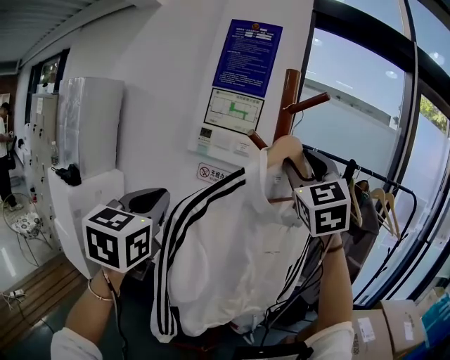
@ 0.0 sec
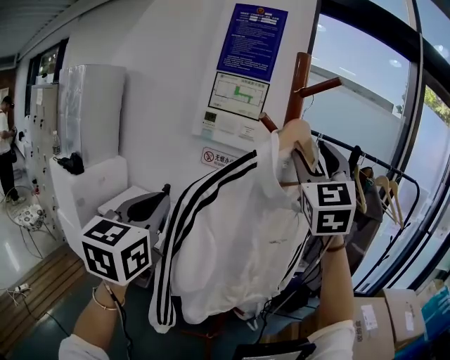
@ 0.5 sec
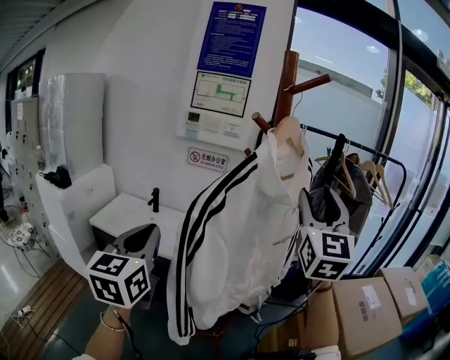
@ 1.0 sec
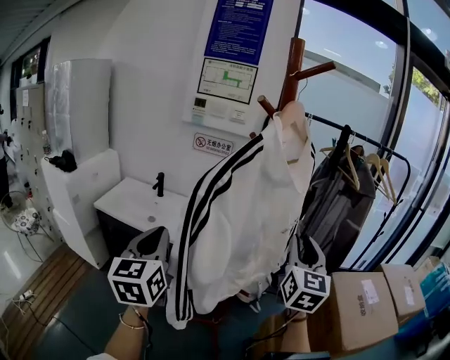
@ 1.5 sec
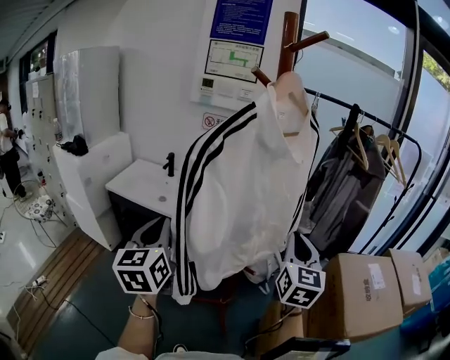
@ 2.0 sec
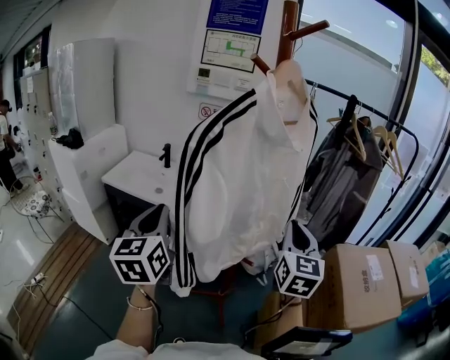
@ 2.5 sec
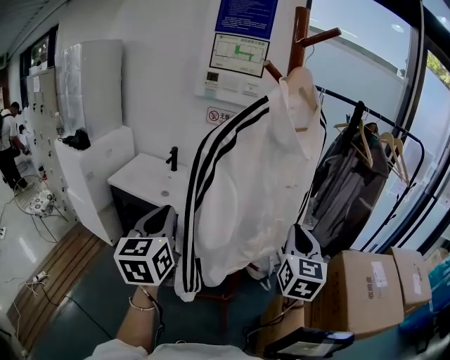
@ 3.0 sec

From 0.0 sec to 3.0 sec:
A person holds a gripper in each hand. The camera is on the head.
From 0.0 sec to 1.5 sec: The right gripper heads downward, covering some 25 cm, and turns by roughly 40 degrees. The left gripper goes roughly 15 cm downward.
From 1.5 sec to 3.0 sec: The right gripper heads downward, covering some 5 cm, and closes up.

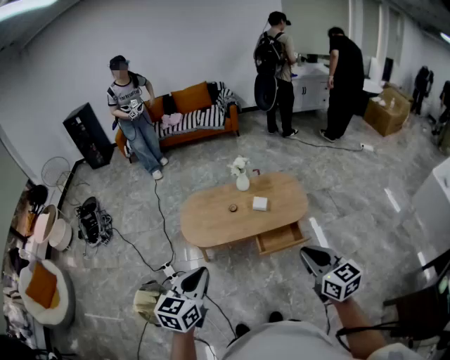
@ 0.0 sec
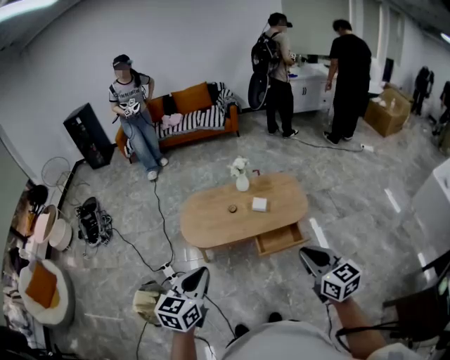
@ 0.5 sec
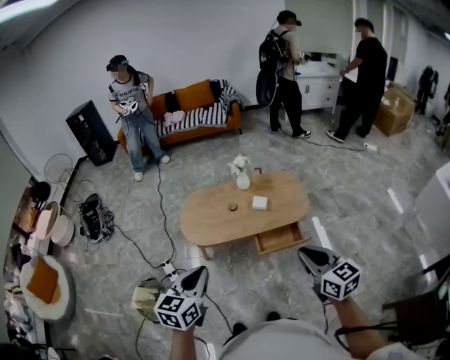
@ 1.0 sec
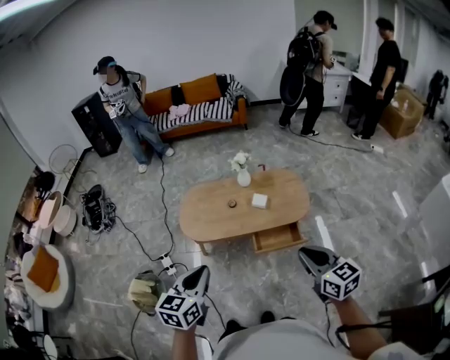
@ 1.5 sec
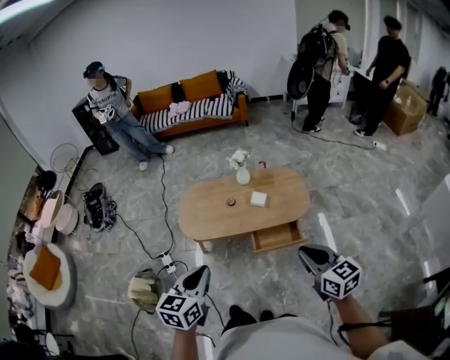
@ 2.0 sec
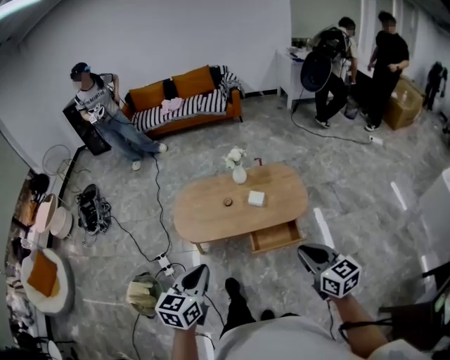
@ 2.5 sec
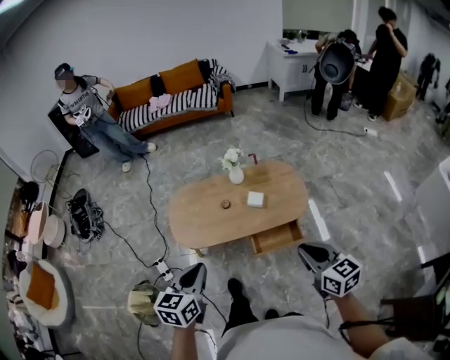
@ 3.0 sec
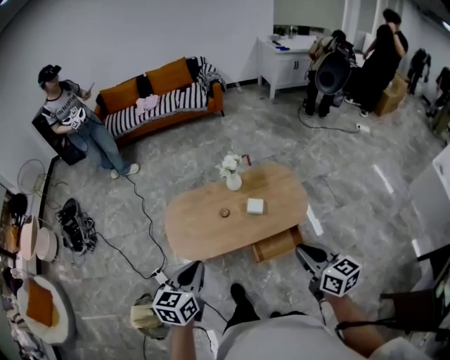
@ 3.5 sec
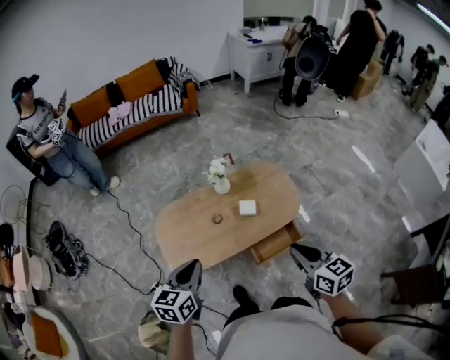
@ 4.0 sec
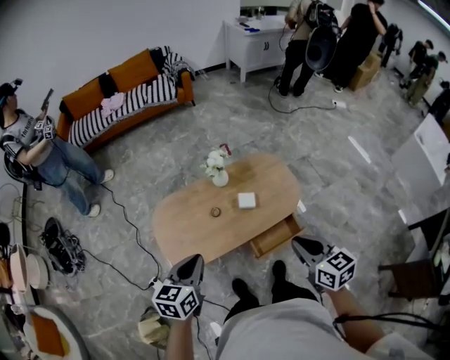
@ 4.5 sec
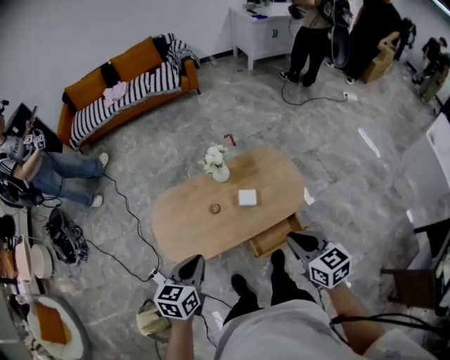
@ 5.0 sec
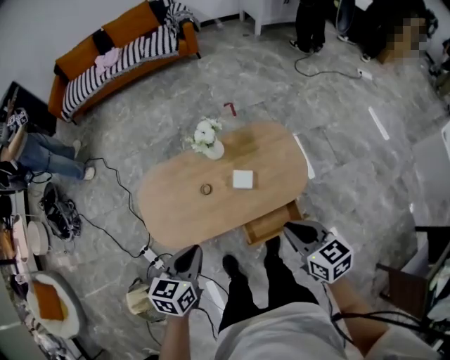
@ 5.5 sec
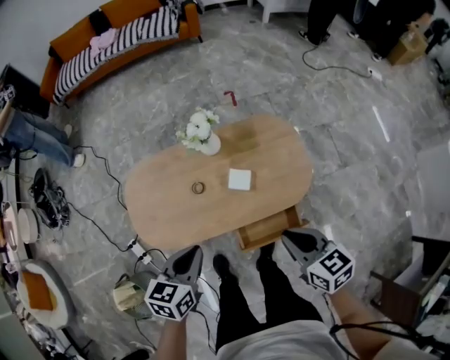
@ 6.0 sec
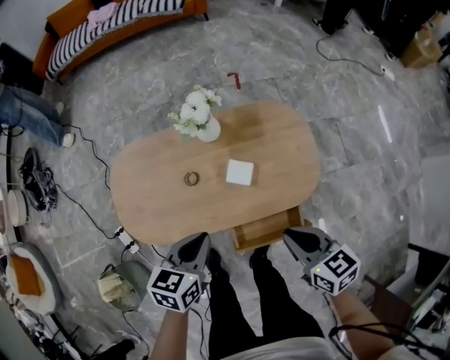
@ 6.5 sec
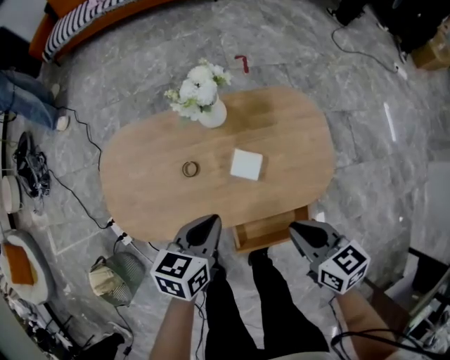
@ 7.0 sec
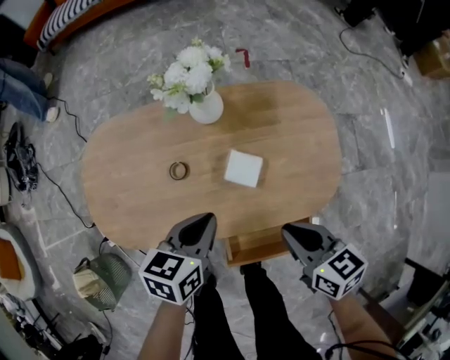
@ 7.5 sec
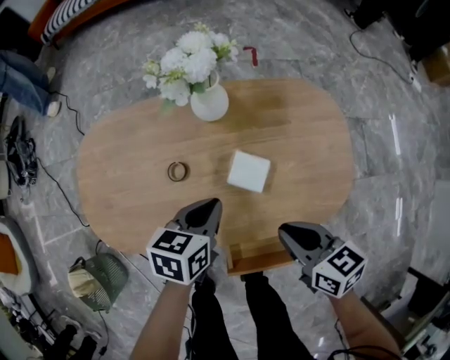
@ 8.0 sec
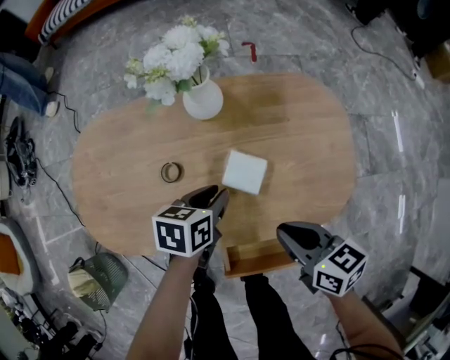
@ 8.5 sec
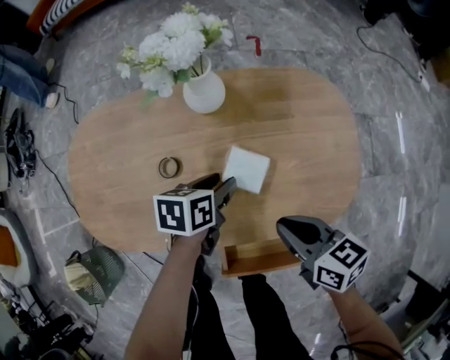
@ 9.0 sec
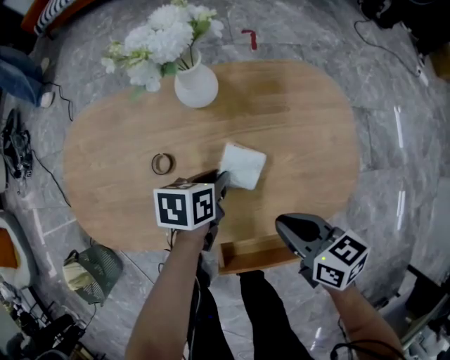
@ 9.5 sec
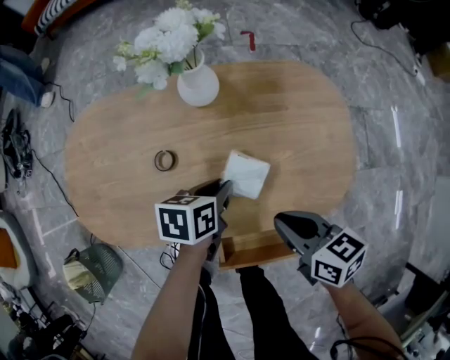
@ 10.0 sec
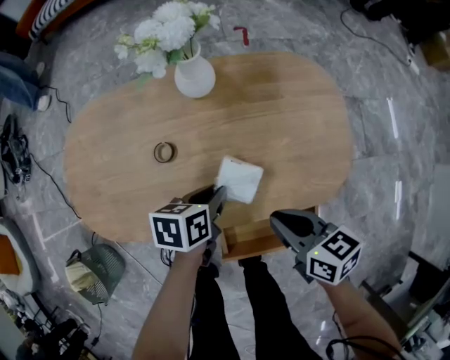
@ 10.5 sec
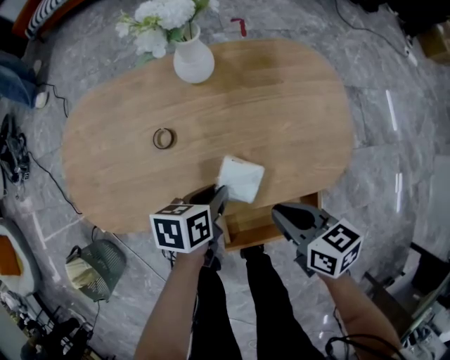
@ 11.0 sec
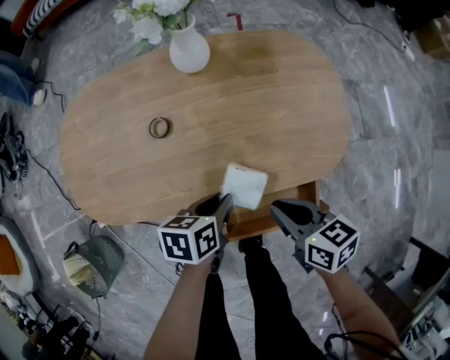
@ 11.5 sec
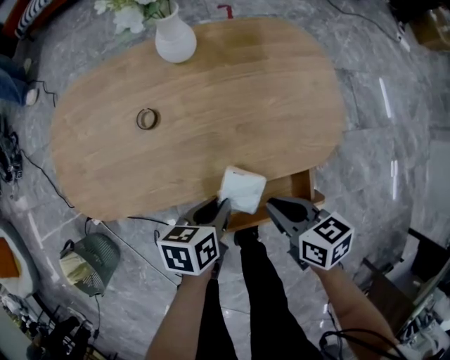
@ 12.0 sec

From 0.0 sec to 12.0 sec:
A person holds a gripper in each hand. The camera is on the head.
From 0.0 sec to 2.0 sec: Both grippers travel together to the right, approximately 10 cm.
From 2.0 sec to 4.0 sec: The left gripper goes roughly 30 cm forward; the right gripper heads forward and to the left, covering approximately 20 cm, and turns by approximately 20 degrees.
From 4.0 sec to 6.0 sec: The right gripper is displaced downward, forward and to the right by some 25 cm, and turns by about 20 degrees. Meanwhile the left gripper moves downward, to the right and forward, about 20 cm.
From 6.0 sec to 8.0 sec: The right gripper shifts some 25 cm downward; the left gripper travels downward and forward by about 30 cm.
From 8.0 sec to 10.0 sec: The left gripper is displaced downward by roughly 5 cm, and opens and closes again.
From 10.0 sec to 12.0 sec: The right gripper heads backward, covering some 10 cm. The left gripper travels backward by some 15 cm.

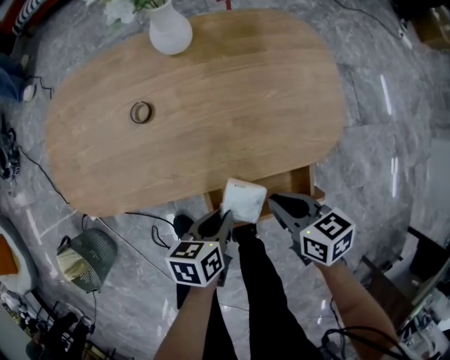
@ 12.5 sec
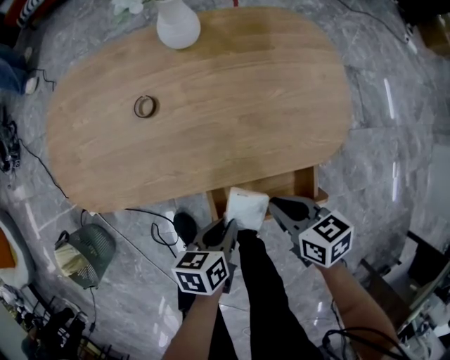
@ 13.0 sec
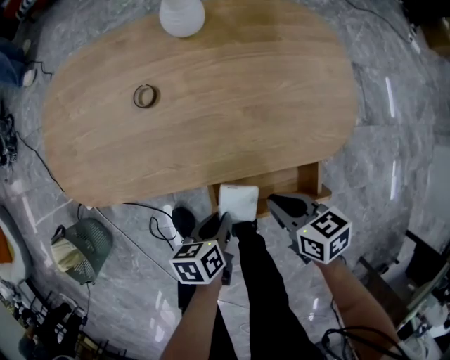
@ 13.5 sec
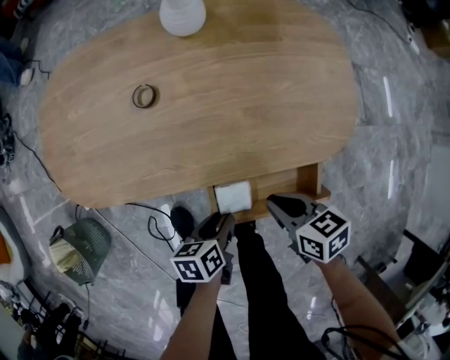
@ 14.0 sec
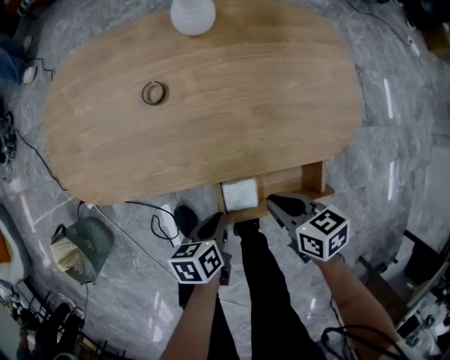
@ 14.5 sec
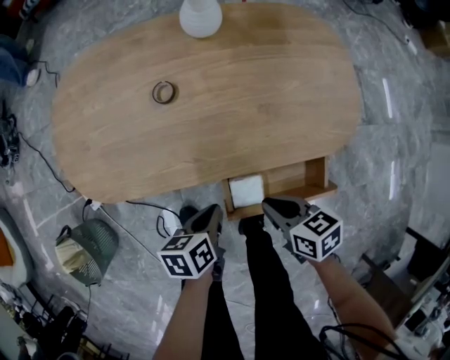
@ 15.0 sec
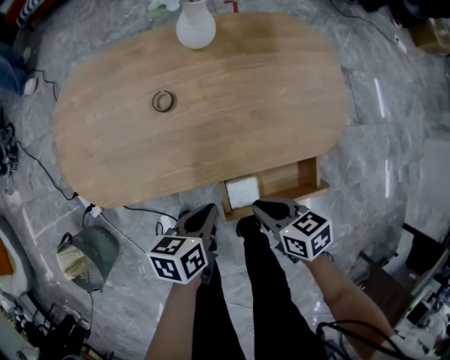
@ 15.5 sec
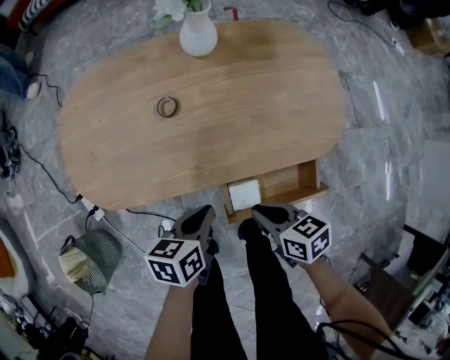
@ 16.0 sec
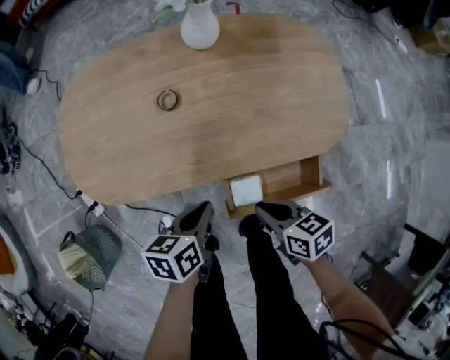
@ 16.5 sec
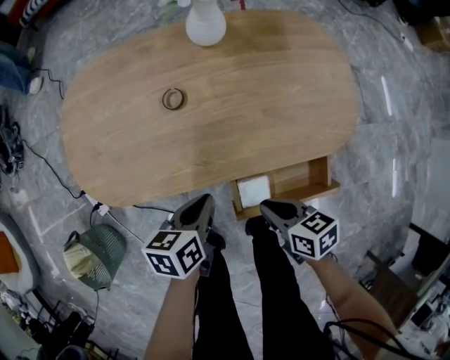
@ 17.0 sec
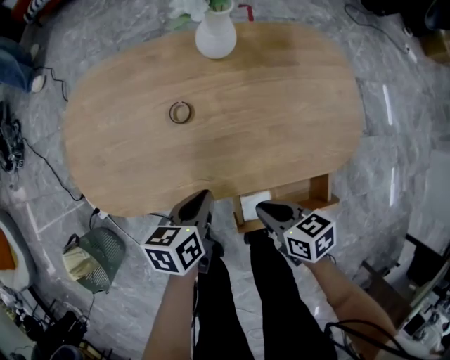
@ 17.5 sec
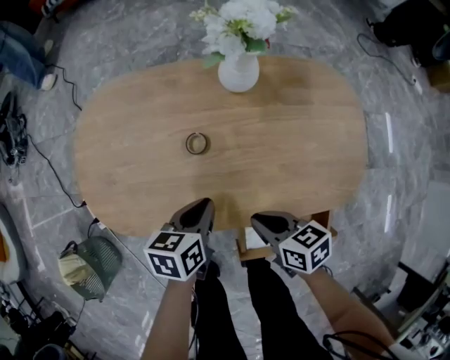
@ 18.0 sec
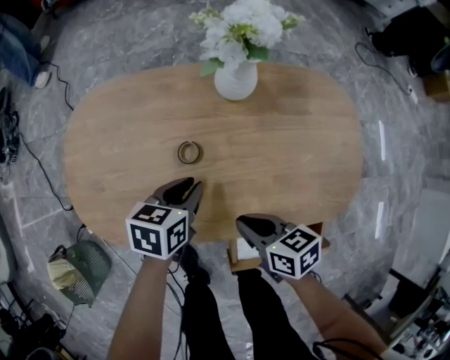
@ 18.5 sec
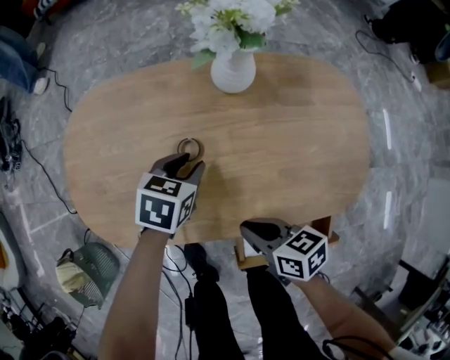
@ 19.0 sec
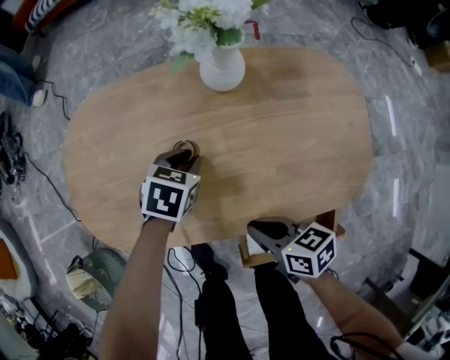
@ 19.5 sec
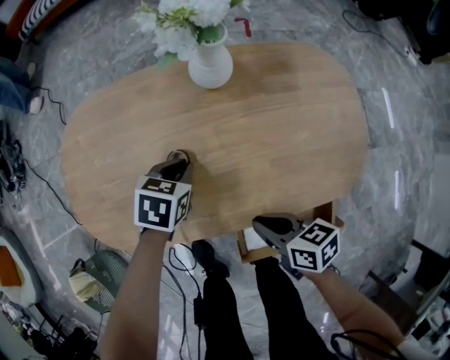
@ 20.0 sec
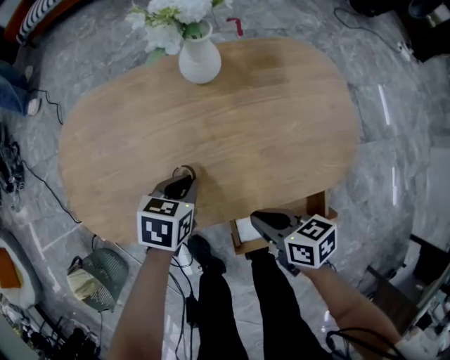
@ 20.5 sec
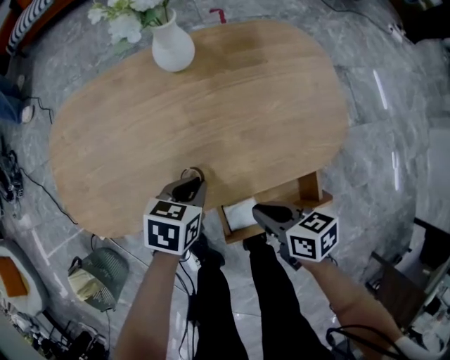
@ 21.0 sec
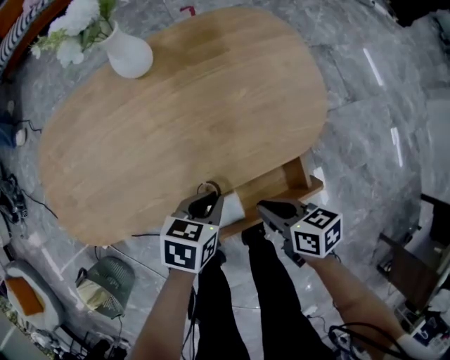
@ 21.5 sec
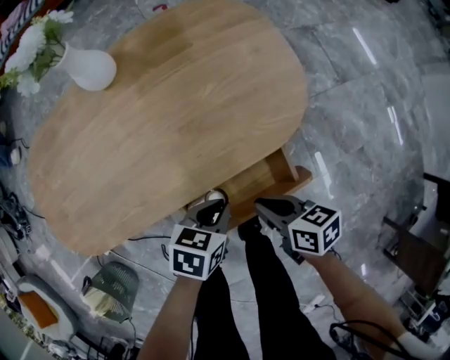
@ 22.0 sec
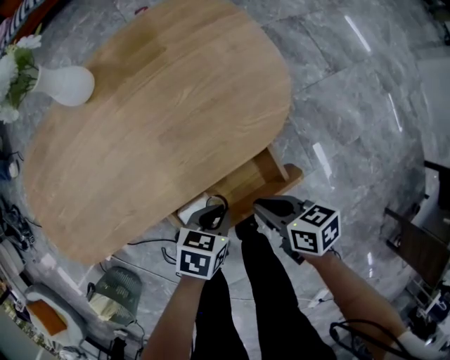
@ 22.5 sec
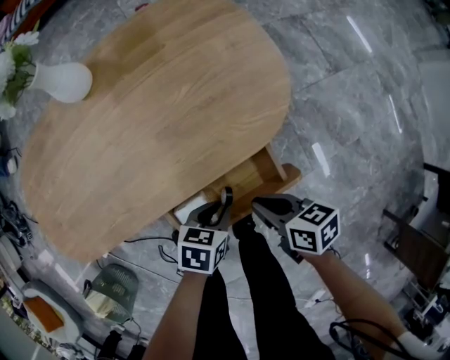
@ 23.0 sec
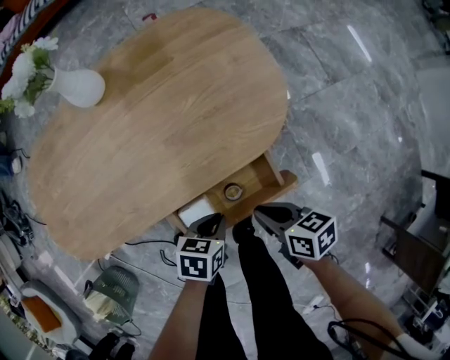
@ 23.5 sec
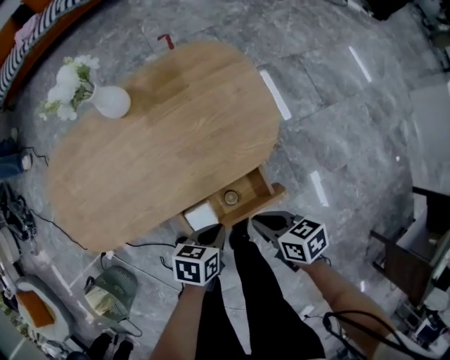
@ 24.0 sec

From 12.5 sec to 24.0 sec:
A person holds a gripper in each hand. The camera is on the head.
From 12.5 sec to 14.5 sec: The left gripper shifts by about 10 cm. The right gripper ends up roughly 5 cm from where it was.
From 14.5 sec to 16.5 sec: The left gripper shifts approximately 10 cm upward, forward and to the left, while the right gripper travels to the left by some 5 cm.
From 16.5 sec to 18.5 sec: Both grippers move forward, some 20 cm.
From 18.5 sec to 20.0 sec: The right gripper shifts by some 5 cm, while the left gripper swivels approximately 20 degrees.
From 20.0 sec to 22.0 sec: The left gripper ends up roughly 30 cm from where it was, and changes its angle by about 20 degrees. The right gripper shifts by approximately 20 cm.
From 22.0 sec to 24.0 sec: The two grippers go approximately 5 cm upward.
